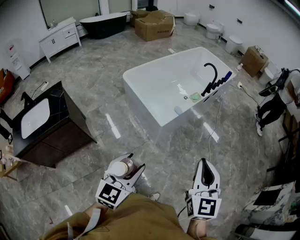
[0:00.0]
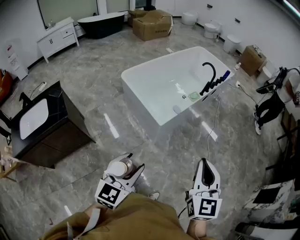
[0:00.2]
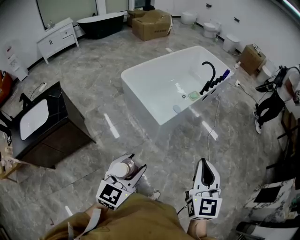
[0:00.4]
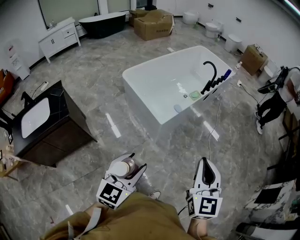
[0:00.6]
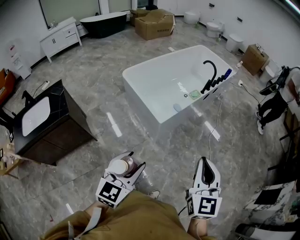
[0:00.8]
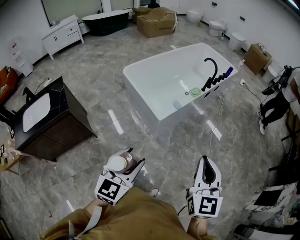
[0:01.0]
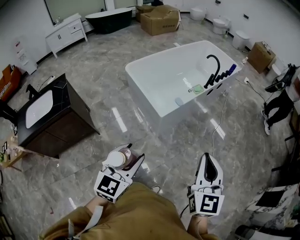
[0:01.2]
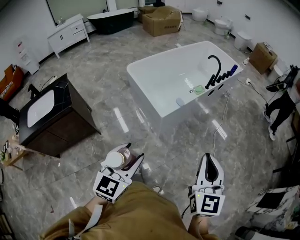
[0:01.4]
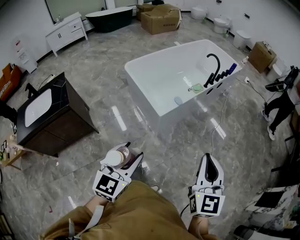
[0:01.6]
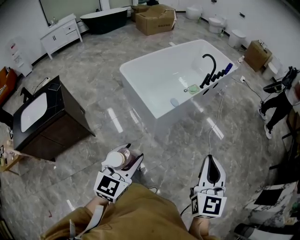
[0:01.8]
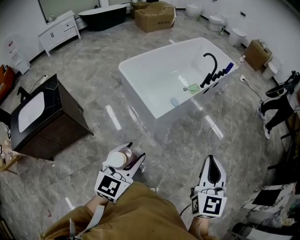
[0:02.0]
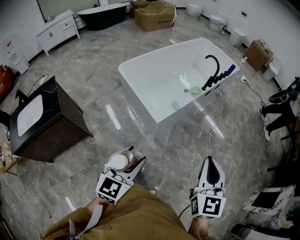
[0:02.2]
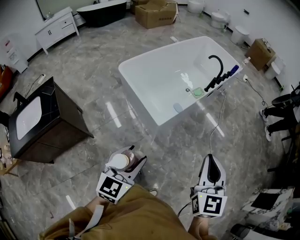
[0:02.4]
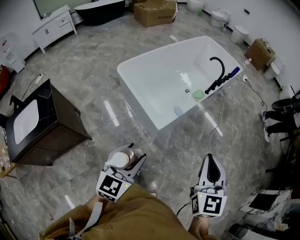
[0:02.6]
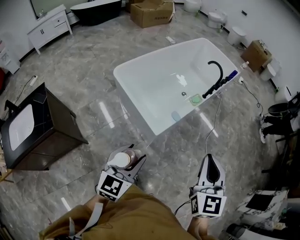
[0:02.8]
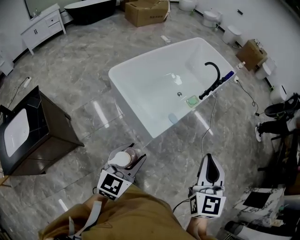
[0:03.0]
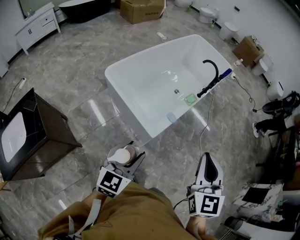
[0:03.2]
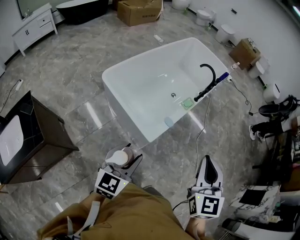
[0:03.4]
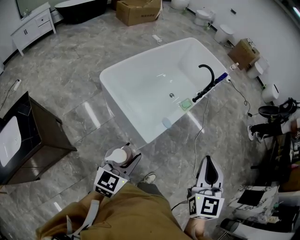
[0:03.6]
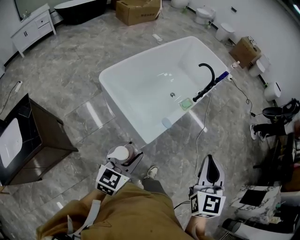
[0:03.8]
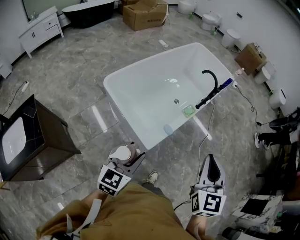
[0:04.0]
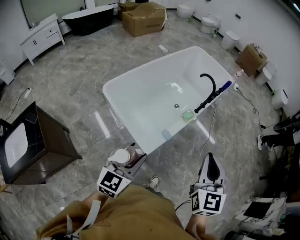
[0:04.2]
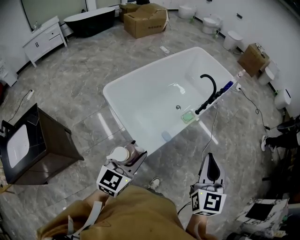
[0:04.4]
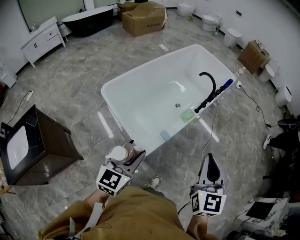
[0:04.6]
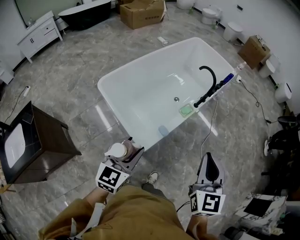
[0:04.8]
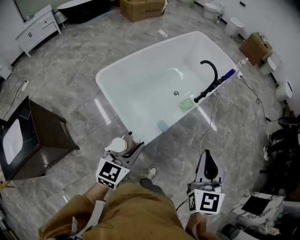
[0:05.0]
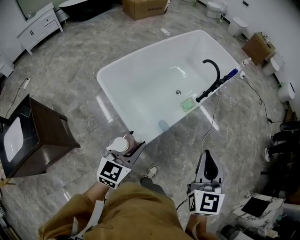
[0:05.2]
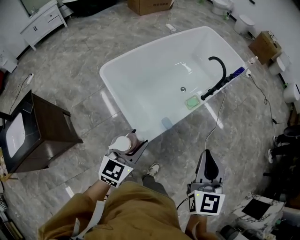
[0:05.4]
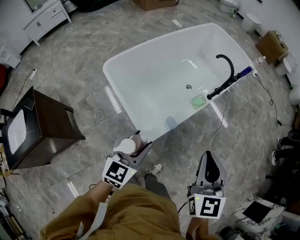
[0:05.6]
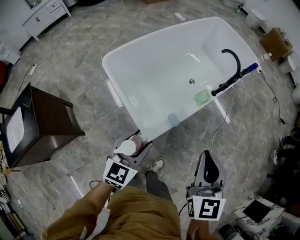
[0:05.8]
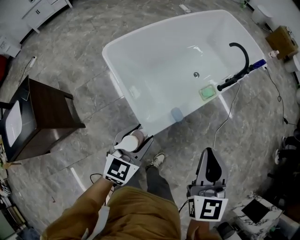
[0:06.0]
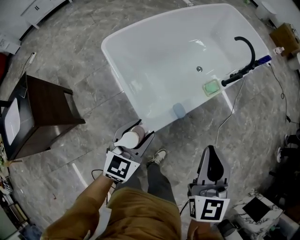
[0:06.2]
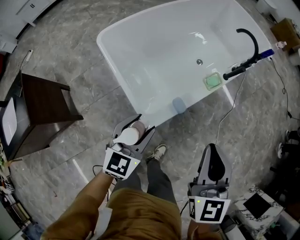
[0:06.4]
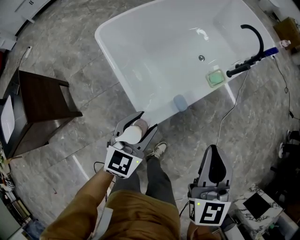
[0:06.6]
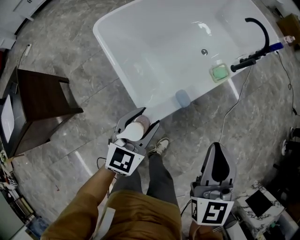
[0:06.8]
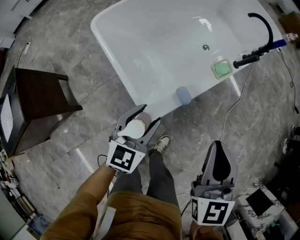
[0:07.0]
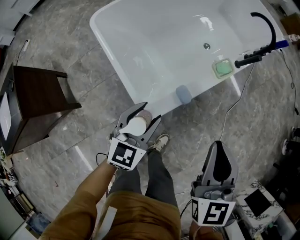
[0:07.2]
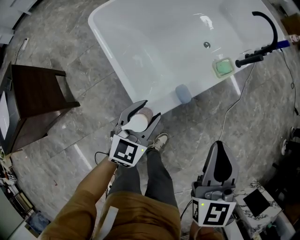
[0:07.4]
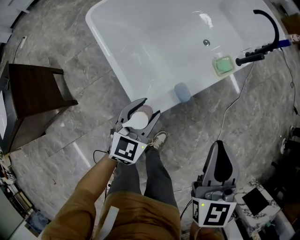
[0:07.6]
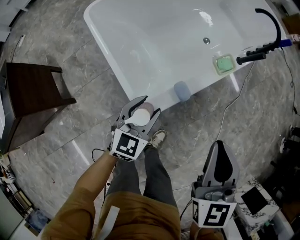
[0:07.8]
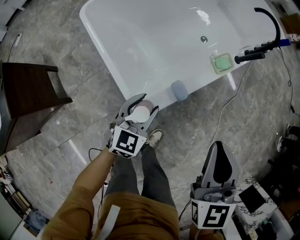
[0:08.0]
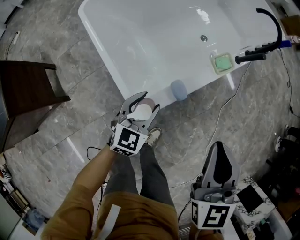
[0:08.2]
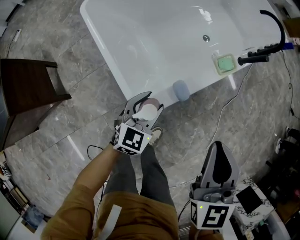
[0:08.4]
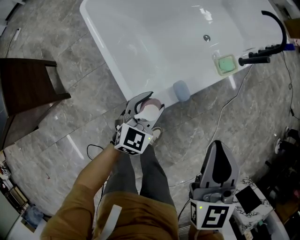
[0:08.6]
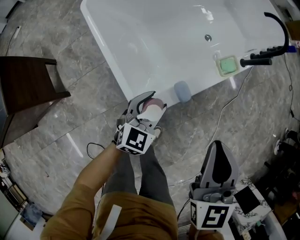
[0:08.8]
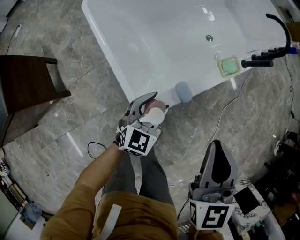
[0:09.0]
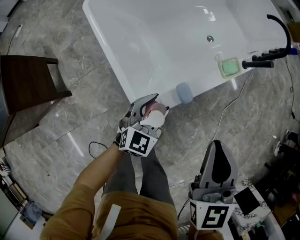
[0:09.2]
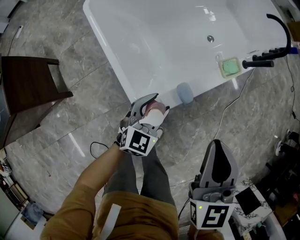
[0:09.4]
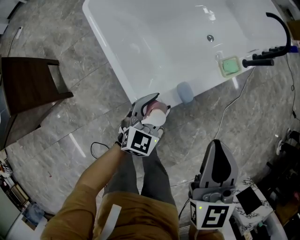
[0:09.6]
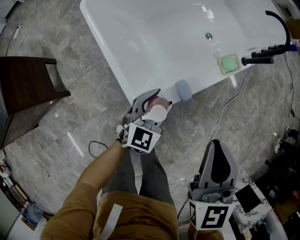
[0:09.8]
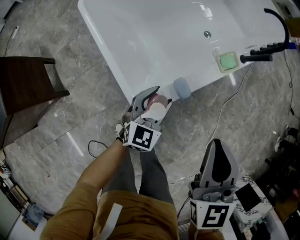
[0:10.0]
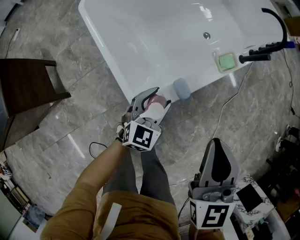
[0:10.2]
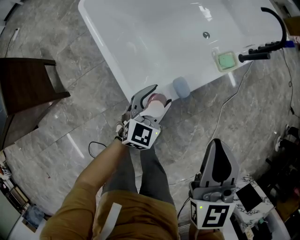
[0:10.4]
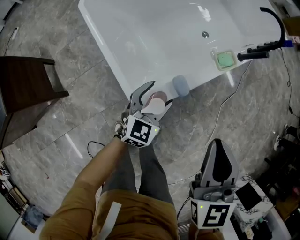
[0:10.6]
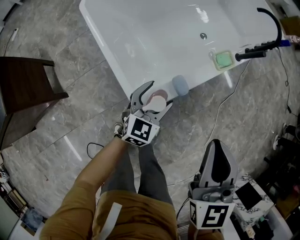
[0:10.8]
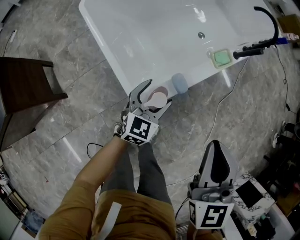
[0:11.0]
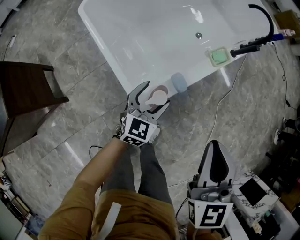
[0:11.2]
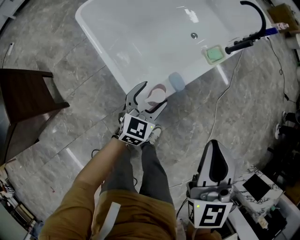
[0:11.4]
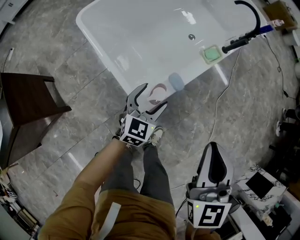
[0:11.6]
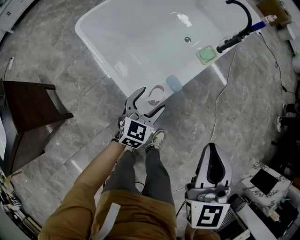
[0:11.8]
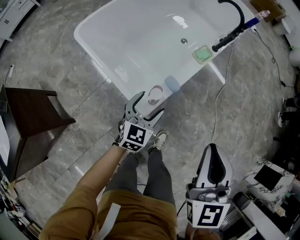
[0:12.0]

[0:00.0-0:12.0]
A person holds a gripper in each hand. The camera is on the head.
0.0 to 1.6 s: The two grippers go about 5 cm to the right.
1.6 to 3.0 s: Both grippers travel together forward and to the left, some 25 cm.
3.0 to 4.4 s: The right gripper heads forward and to the right, covering approximately 15 cm, while the left gripper moves forward, about 15 cm.
4.4 to 6.0 s: The grippers both shift downward and forward by approximately 15 cm.
6.0 to 7.6 s: The grippers both shift downward by approximately 15 cm.
7.6 to 9.0 s: The left gripper goes approximately 5 cm downward.
9.0 to 10.4 s: There are only small adjustments of the grippers.
10.4 to 12.0 s: The right gripper travels backward and upward by about 15 cm; the left gripper goes some 10 cm backward and upward.

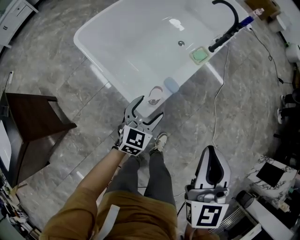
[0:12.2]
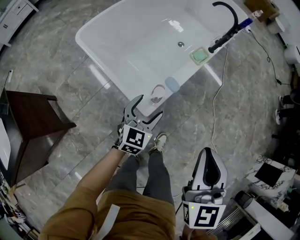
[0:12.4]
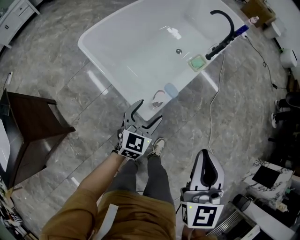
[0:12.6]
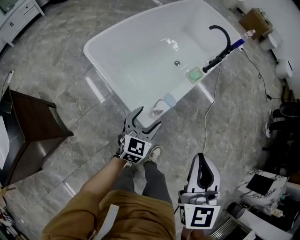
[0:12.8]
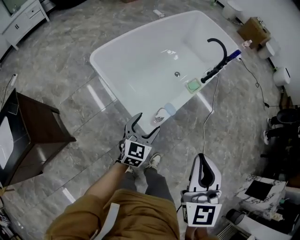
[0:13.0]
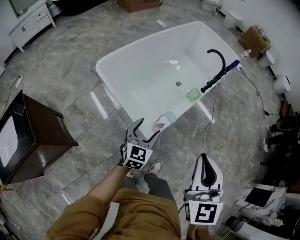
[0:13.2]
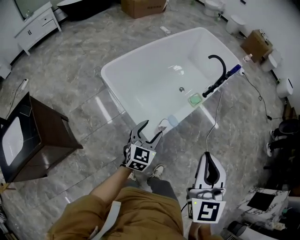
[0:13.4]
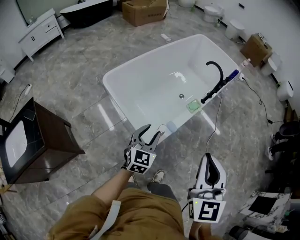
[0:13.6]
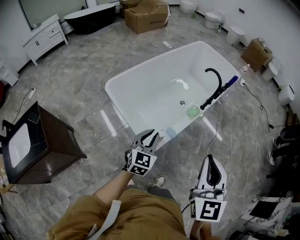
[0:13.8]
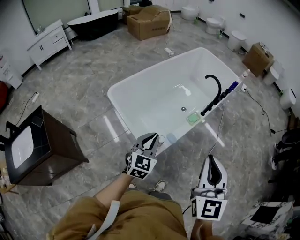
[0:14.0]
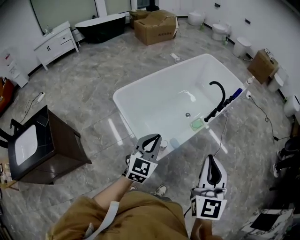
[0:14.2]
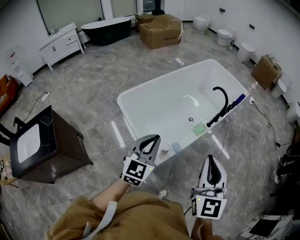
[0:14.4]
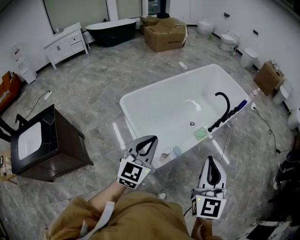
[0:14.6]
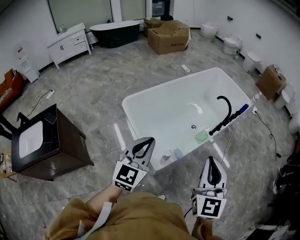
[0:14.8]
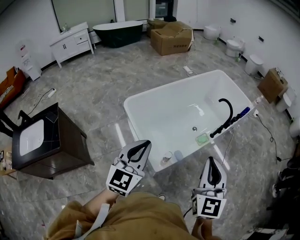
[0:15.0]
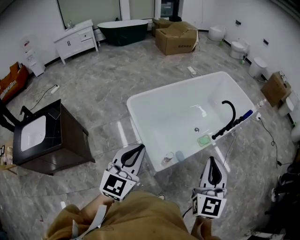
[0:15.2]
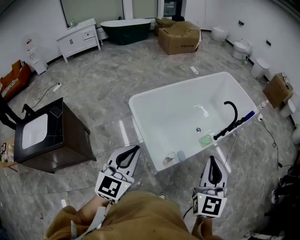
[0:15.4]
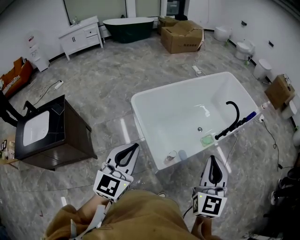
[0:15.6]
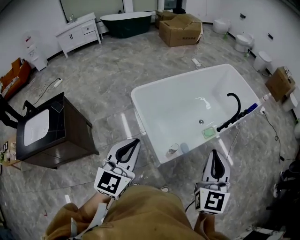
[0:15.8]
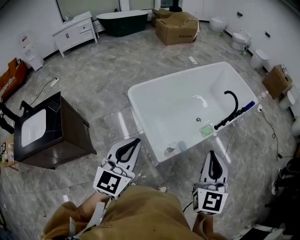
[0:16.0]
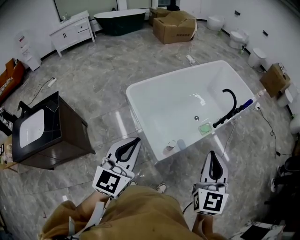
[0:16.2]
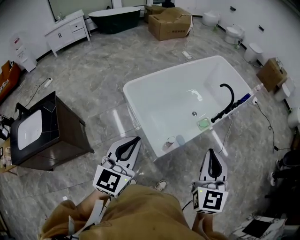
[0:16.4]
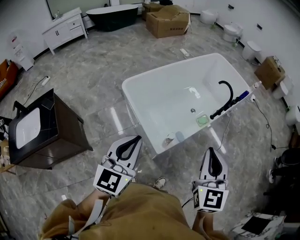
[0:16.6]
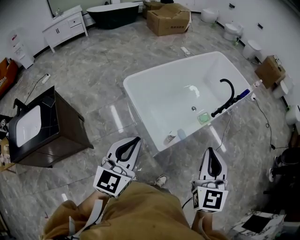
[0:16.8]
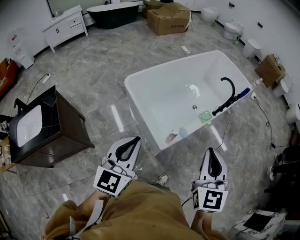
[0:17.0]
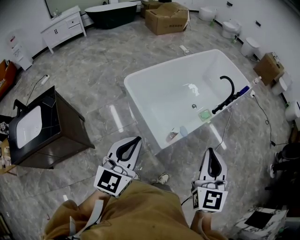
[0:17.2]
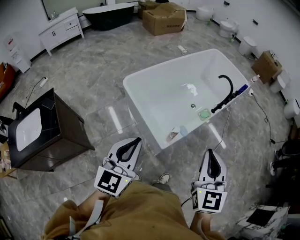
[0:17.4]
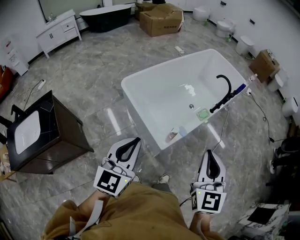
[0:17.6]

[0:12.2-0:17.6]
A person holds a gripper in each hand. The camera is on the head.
12.2 to 13.6 s: Both grippers move upward, roughly 20 cm. The left gripper closes up.
13.6 to 15.0 s: The right gripper moves forward, roughly 5 cm; the left gripper moves upward, roughly 20 cm, and closes its fingers.
15.0 to 16.2 s: The left gripper changes place by some 5 cm.
16.2 to 17.6 s: Both grippers move backward, about 5 cm.

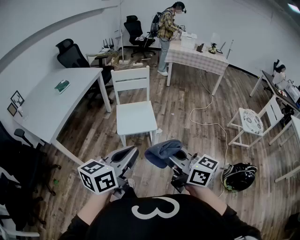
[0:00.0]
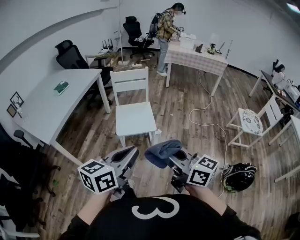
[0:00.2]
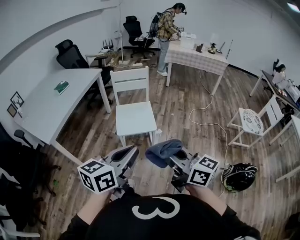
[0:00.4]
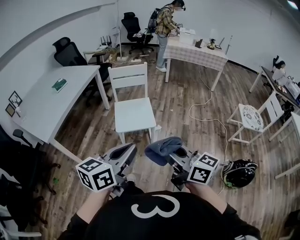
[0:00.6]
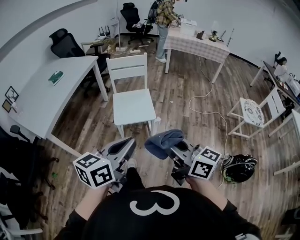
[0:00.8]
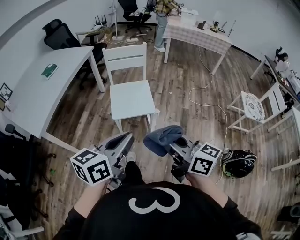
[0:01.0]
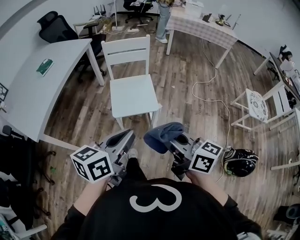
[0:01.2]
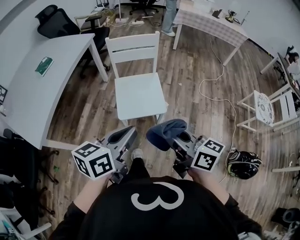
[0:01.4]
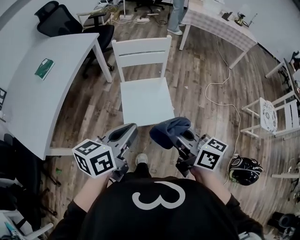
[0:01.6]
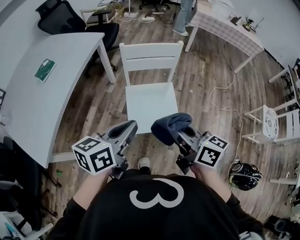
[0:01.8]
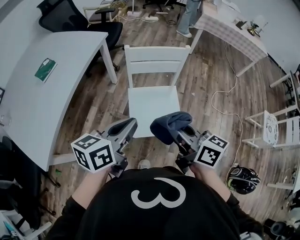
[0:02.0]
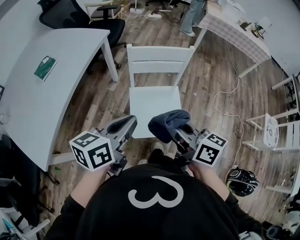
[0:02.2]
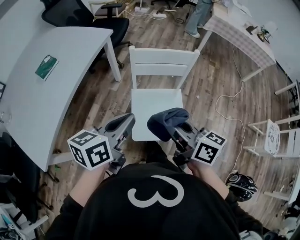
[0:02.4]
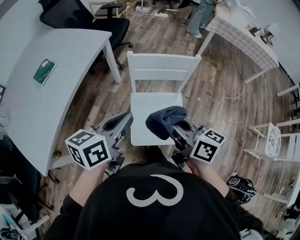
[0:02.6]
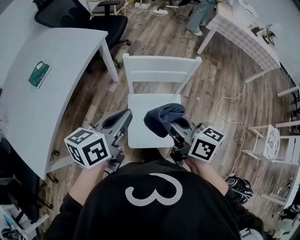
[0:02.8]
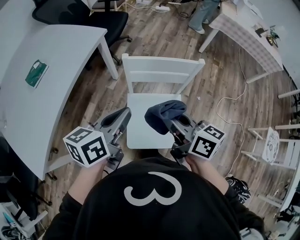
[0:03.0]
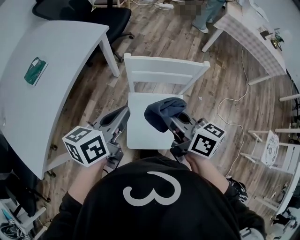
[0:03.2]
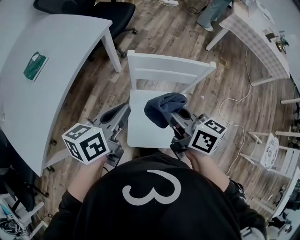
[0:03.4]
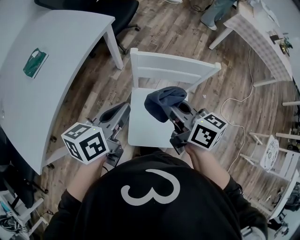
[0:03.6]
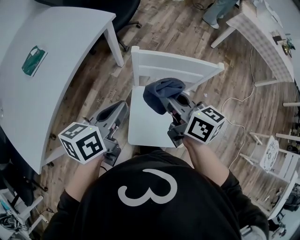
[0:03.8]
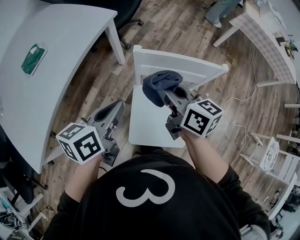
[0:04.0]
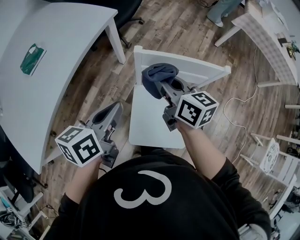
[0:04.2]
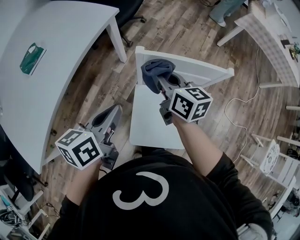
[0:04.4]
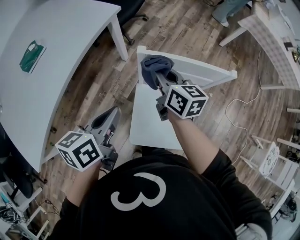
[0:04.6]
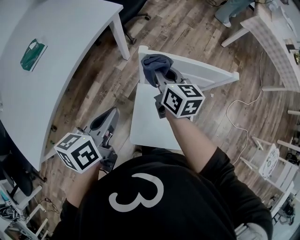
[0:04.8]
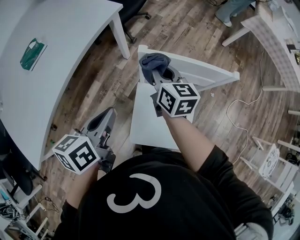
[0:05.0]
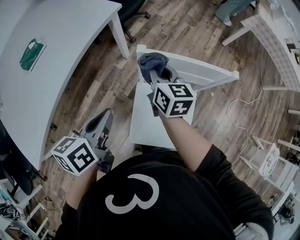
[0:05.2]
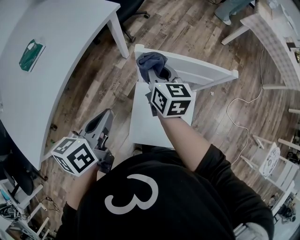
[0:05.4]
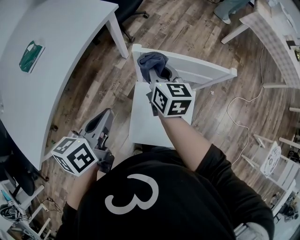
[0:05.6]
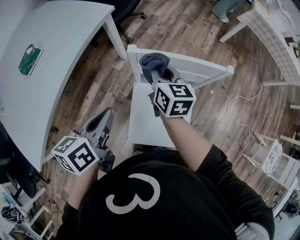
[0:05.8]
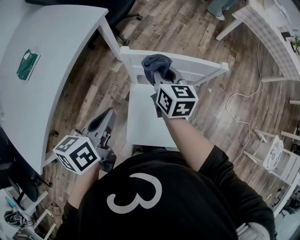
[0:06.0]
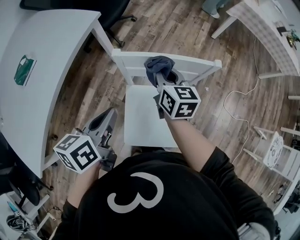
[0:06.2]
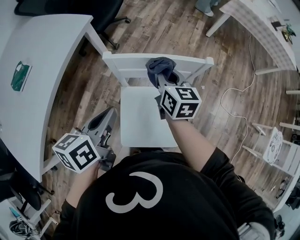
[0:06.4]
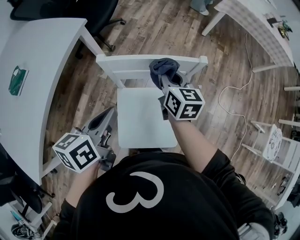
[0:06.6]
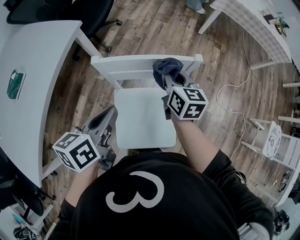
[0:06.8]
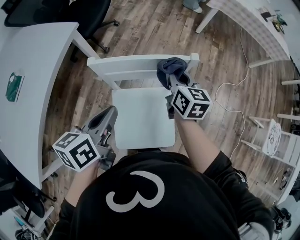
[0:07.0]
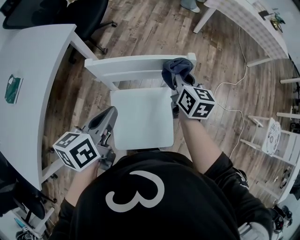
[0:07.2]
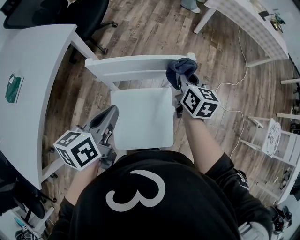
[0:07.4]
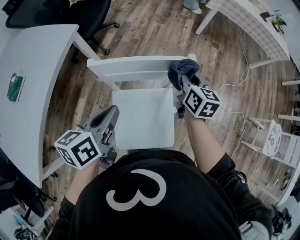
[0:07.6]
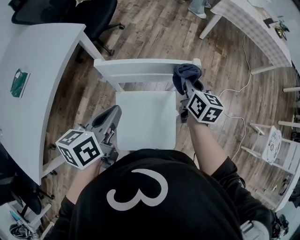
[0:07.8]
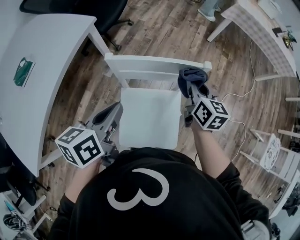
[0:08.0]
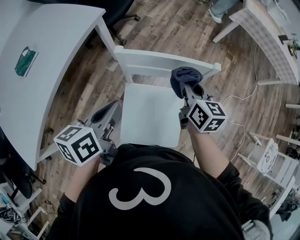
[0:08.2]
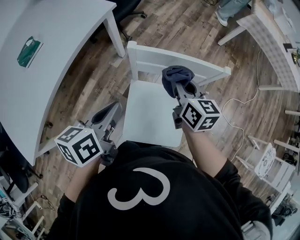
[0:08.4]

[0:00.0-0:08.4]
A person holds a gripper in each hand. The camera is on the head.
0.0 to 1.4 s: The two grippers go approximately 20 cm forward.
1.4 to 2.8 s: Both grippers move forward, roughly 35 cm.
2.8 to 4.2 s: The right gripper goes roughly 20 cm forward and downward. Meanwhile the left gripper is displaced forward, downward and to the left by some 10 cm.
4.2 to 5.6 s: The right gripper is displaced forward and downward by about 10 cm.
5.6 to 7.0 s: The right gripper moves to the right, about 20 cm. The left gripper is displaced to the right by some 10 cm.
7.0 to 8.4 s: The left gripper travels to the left by some 5 cm. The right gripper heads to the left and backward, covering some 10 cm.
